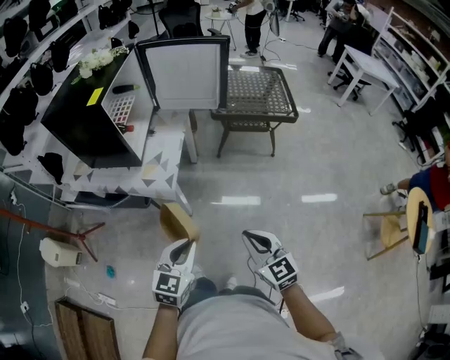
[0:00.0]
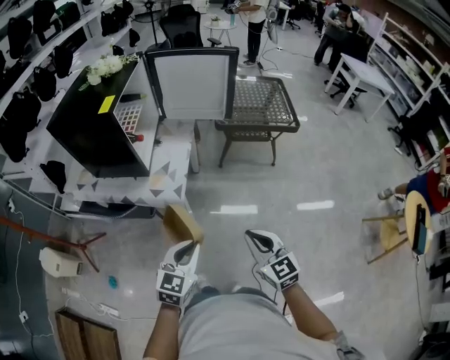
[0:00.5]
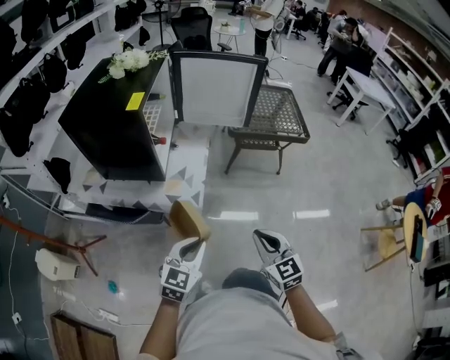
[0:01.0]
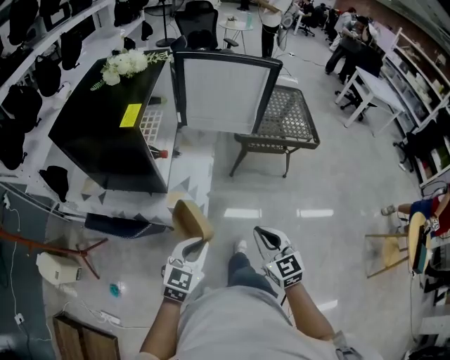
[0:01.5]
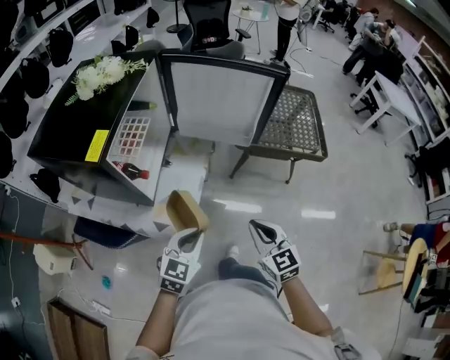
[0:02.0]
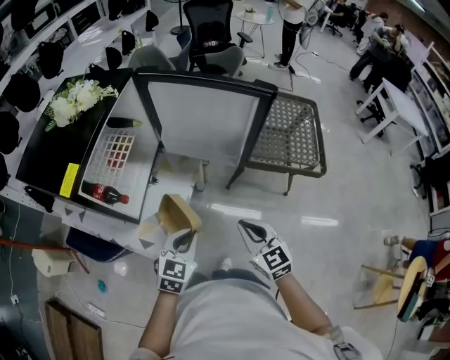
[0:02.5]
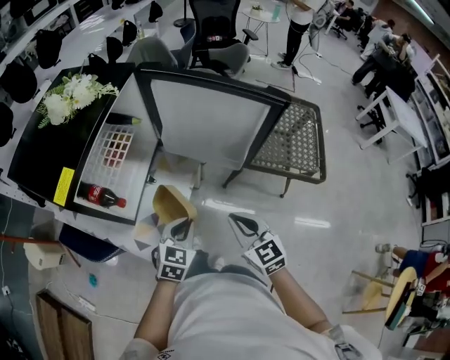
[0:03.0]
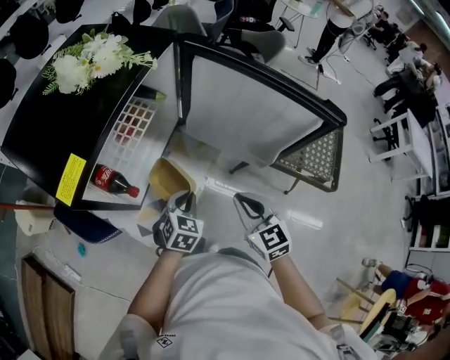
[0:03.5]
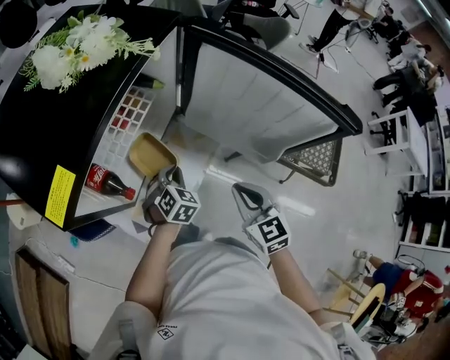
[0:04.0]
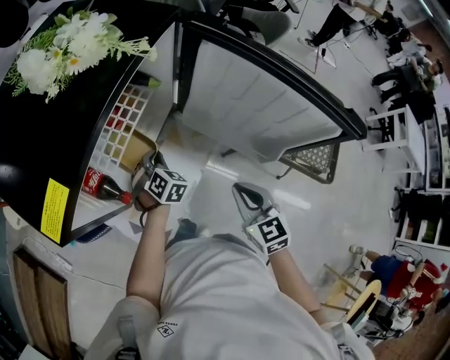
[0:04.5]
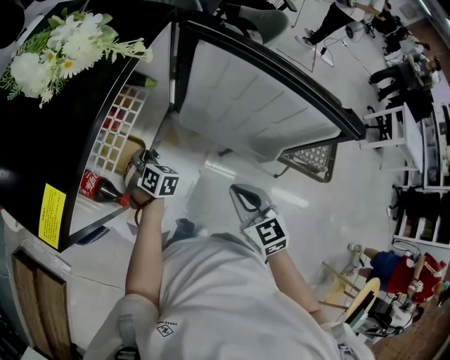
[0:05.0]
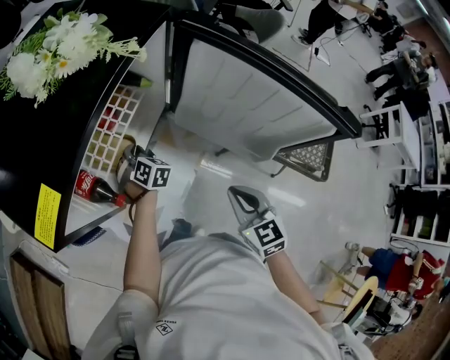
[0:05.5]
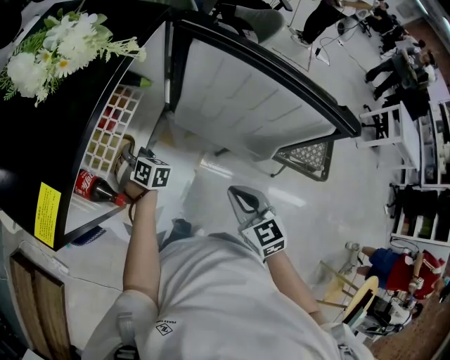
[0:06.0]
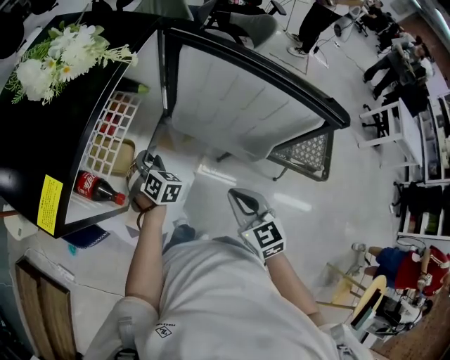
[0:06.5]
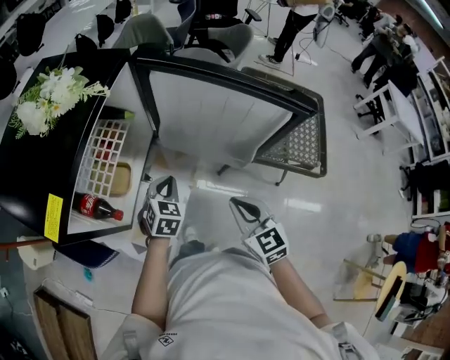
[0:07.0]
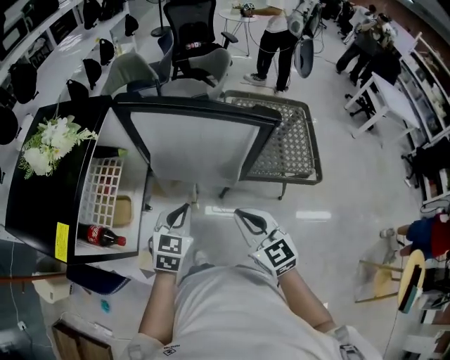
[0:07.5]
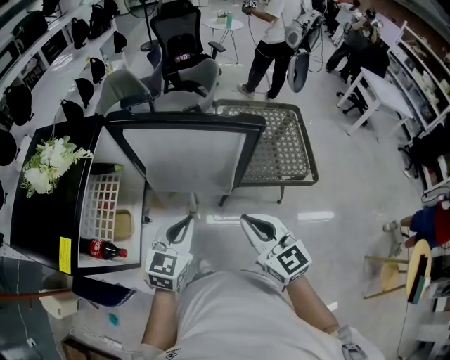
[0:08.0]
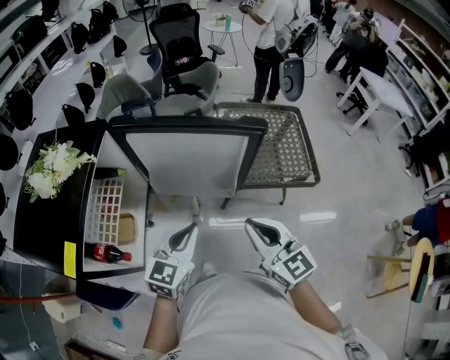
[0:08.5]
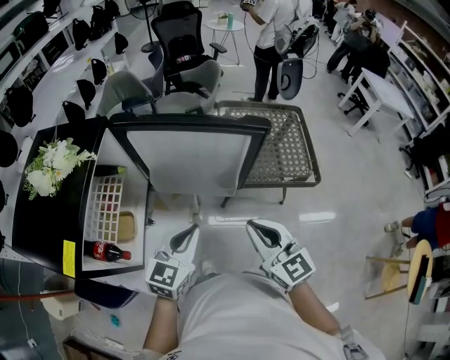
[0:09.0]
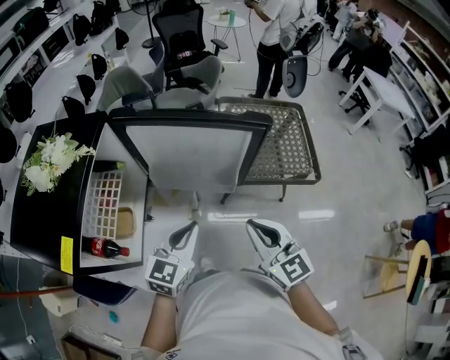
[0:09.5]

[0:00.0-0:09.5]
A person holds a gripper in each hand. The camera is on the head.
0:00.0 to 0:02.0: Both grippers move forward, approximately 30 cm.
0:02.0 to 0:04.0: The left gripper moves roughly 30 cm, and turns by approximately 40 degrees. The right gripper changes place by roughly 25 cm.
0:04.0 to 0:05.5: The left gripper goes roughly 15 cm forward and to the left, and rotates approximately 20 degrees.
0:05.5 to 0:07.5: The right gripper moves upward, roughly 10 cm. Meanwhile the left gripper changes place by some 30 cm, changes its angle by roughly 50 degrees, and opens and closes again.
0:07.5 to 0:09.5: The right gripper shifts by roughly 5 cm; the left gripper goes approximately 5 cm upward.

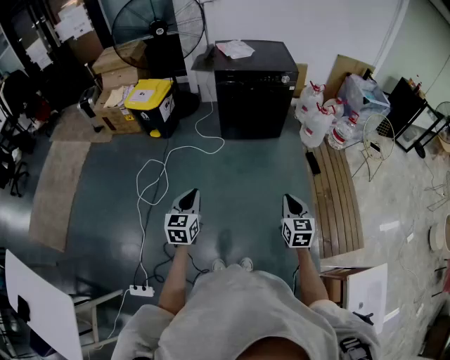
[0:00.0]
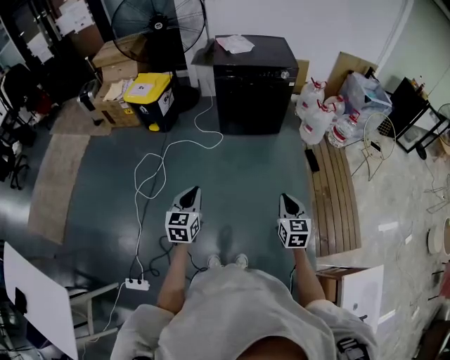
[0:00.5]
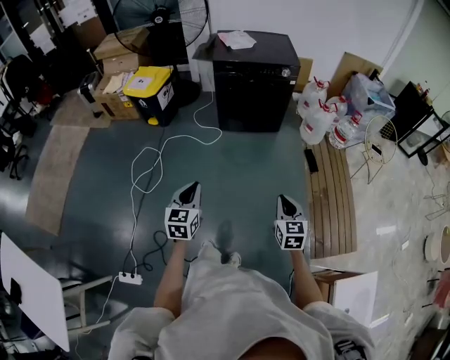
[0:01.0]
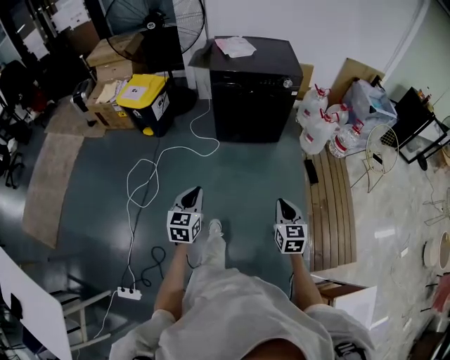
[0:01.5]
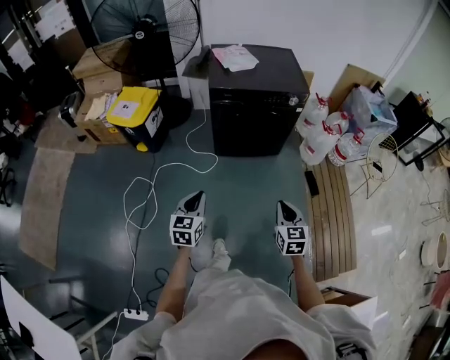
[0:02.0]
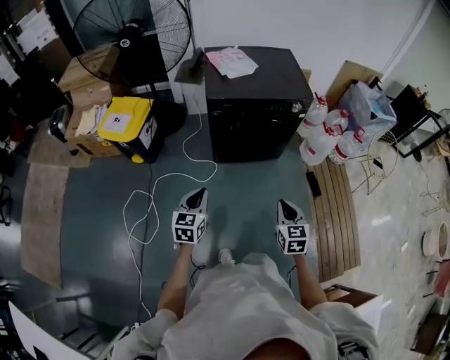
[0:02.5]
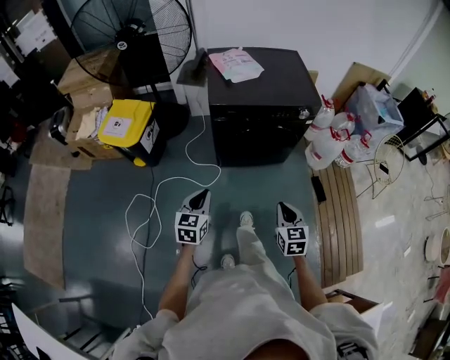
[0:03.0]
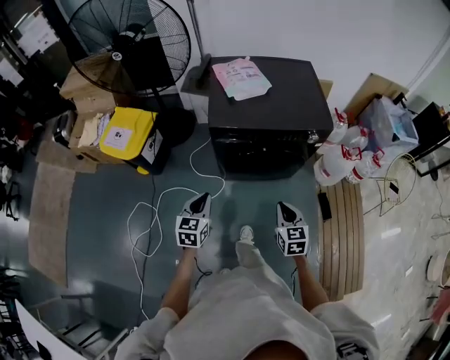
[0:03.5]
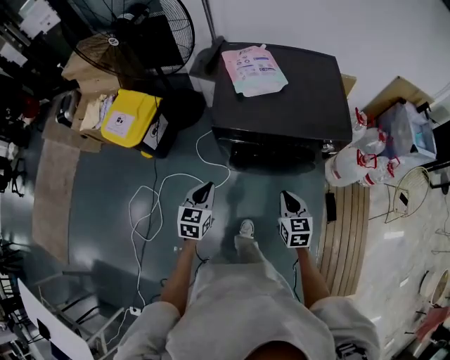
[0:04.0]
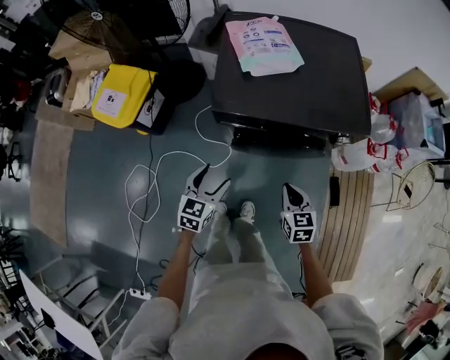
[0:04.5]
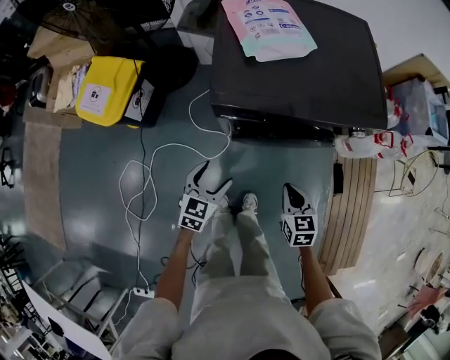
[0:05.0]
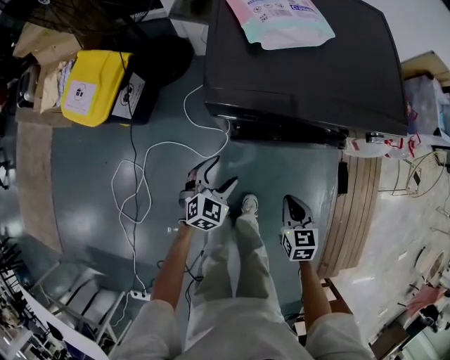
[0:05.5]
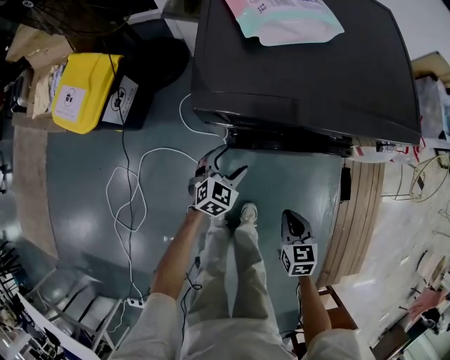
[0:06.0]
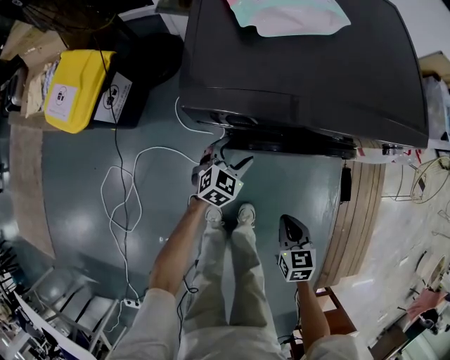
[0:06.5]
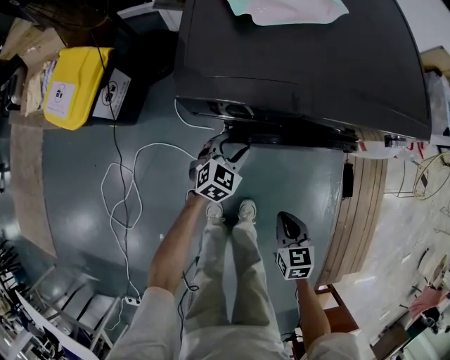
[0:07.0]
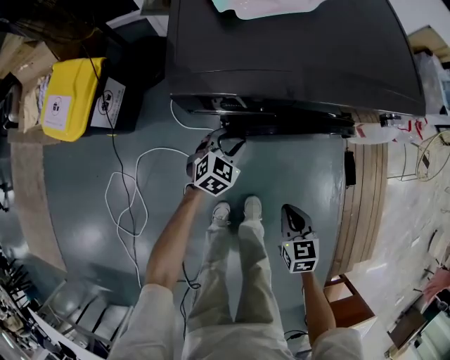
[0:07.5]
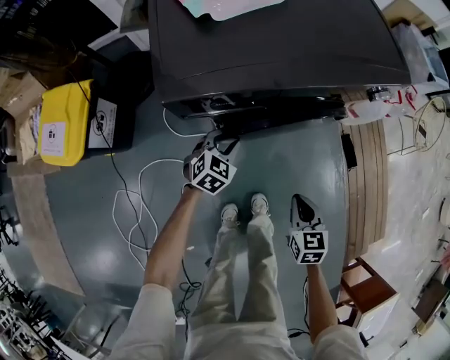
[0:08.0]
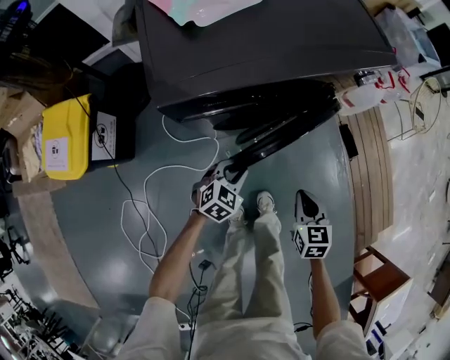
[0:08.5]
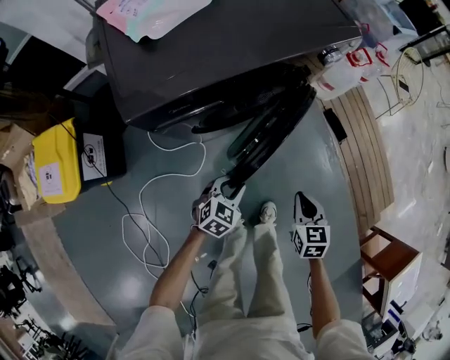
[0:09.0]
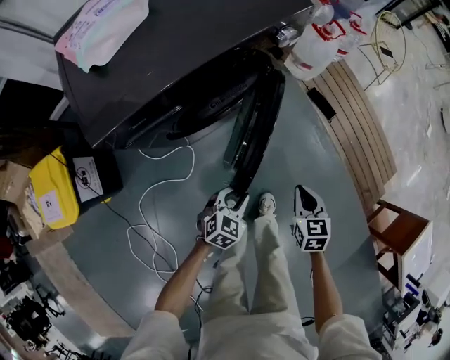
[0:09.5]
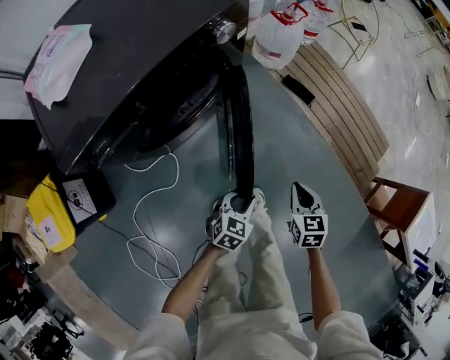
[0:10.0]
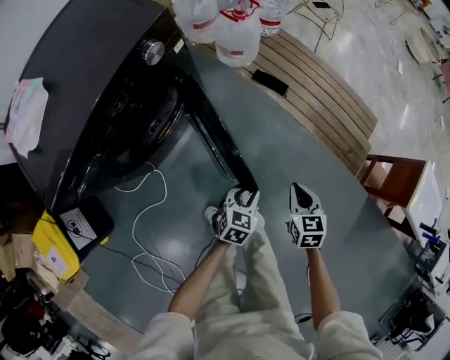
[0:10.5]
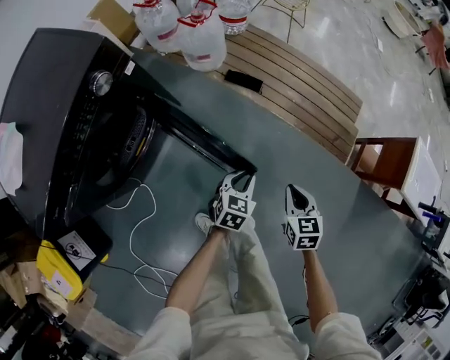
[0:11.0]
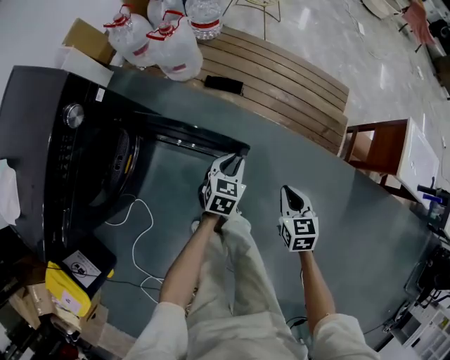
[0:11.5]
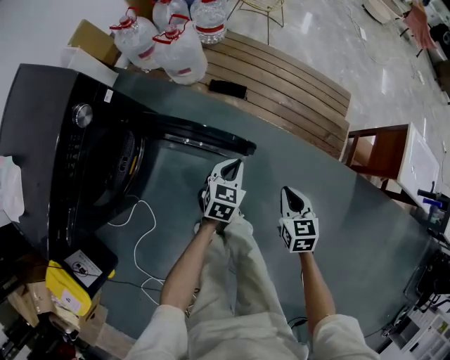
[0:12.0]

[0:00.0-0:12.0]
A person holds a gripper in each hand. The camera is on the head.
0:00.0 to 0:02.0: Both grippers travel together forward, roughly 30 cm.
0:02.0 to 0:04.0: The pair of grippers is taken forward, approximately 40 cm.
0:04.0 to 0:06.0: The left gripper moves downward and forward, about 35 cm, swivels about 30 degrees, and opens; the right gripper shifts about 25 cm downward.
0:06.0 to 0:08.0: The left gripper closes.
0:08.0 to 0:10.0: The left gripper shifts by approximately 35 cm, and swivels approximately 30 degrees. Meanwhile the right gripper ends up roughly 25 cm from where it was, and swivels about 30 degrees.
0:10.0 to 0:12.0: The left gripper moves forward and to the right, roughly 30 cm, and closes, while the right gripper travels to the right by approximately 25 cm, and swivels roughly 20 degrees.

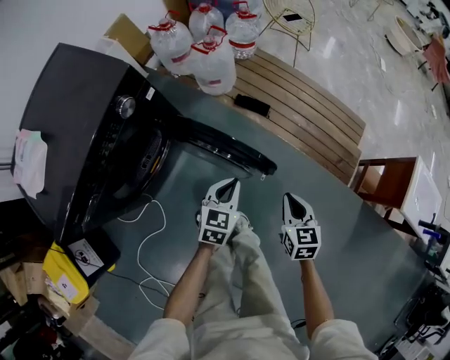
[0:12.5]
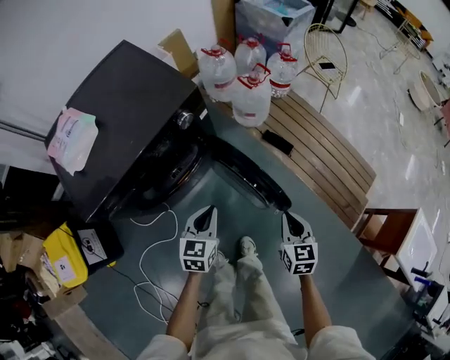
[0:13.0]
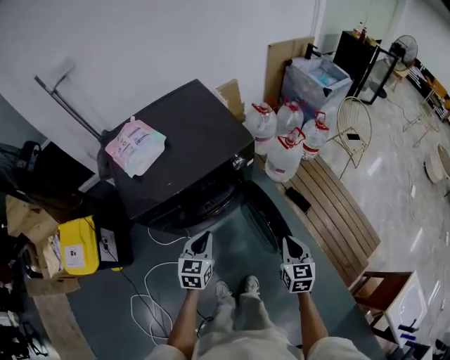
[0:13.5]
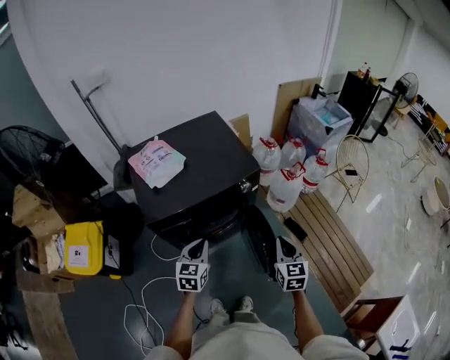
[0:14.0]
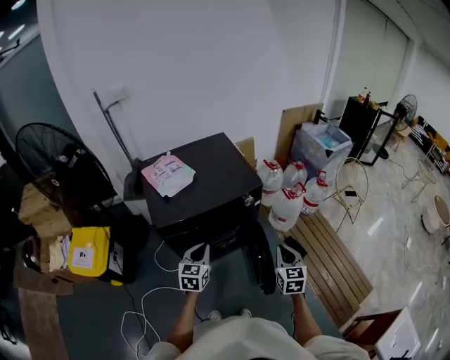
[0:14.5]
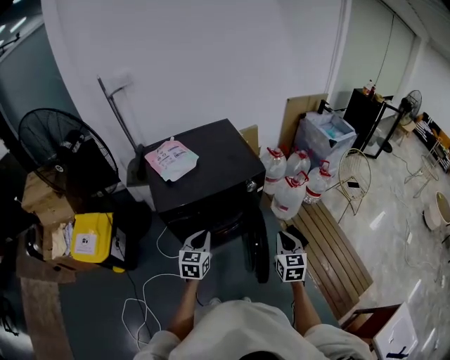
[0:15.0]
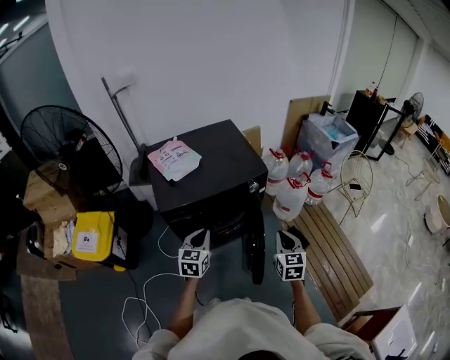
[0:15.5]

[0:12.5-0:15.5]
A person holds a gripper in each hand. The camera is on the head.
0:12.5 to 0:14.0: The left gripper ends up approximately 40 cm from where it was, and swivels some 40 degrees. The right gripper is displaced upward by some 30 cm, and rotates approximately 40 degrees.
0:14.0 to 0:15.5: The left gripper moves about 5 cm.

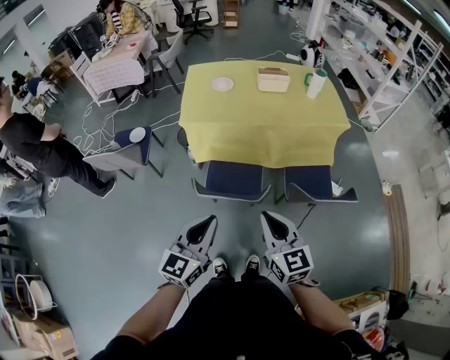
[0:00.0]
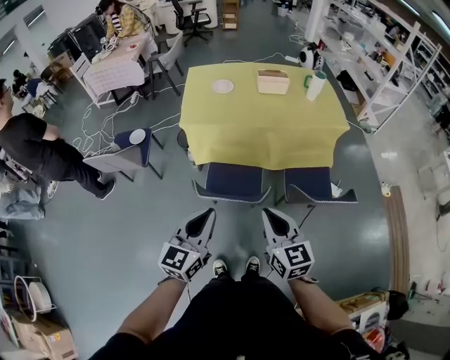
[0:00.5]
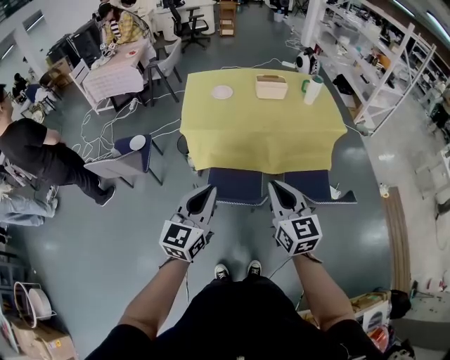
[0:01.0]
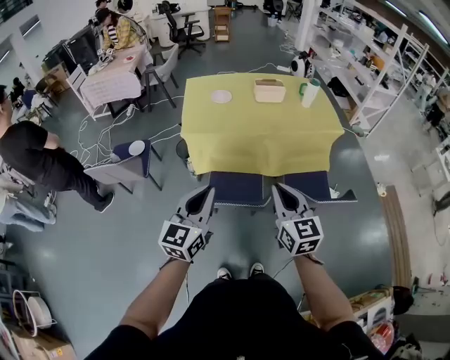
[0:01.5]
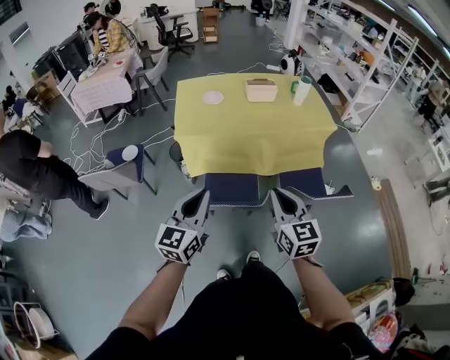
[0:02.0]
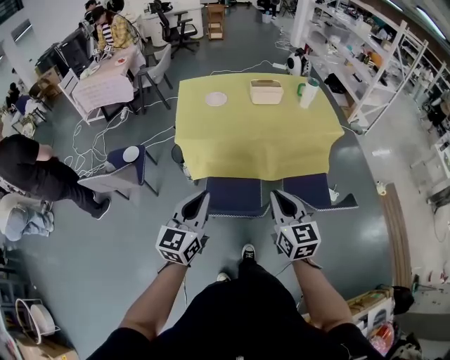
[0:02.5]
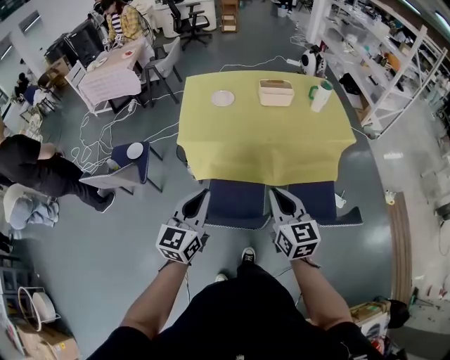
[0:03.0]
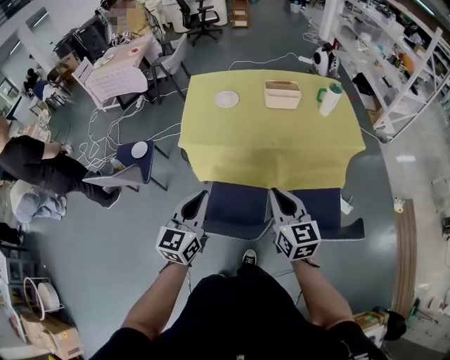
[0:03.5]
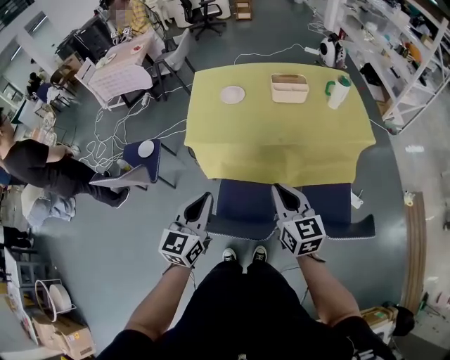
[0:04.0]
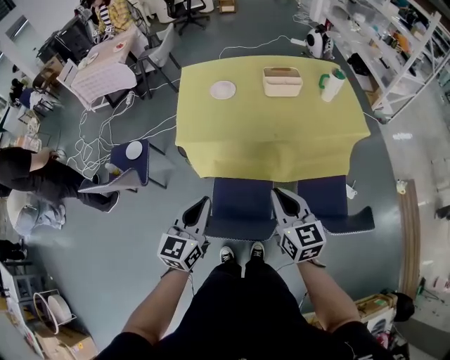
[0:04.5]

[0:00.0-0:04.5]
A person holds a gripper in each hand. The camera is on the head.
0:00.0 to 0:02.0: The left gripper is displaced to the left and forward by some 10 cm.
0:02.0 to 0:04.5: Both grippers move forward, some 20 cm.
